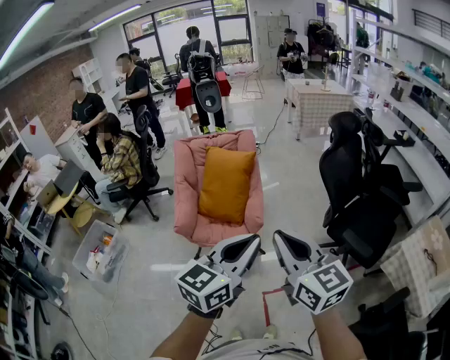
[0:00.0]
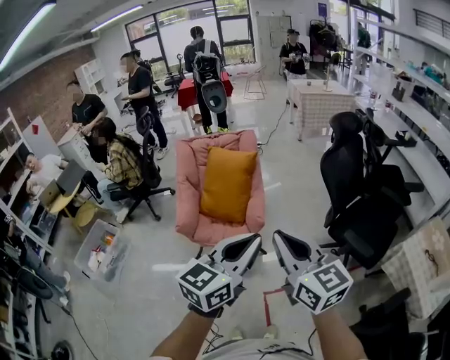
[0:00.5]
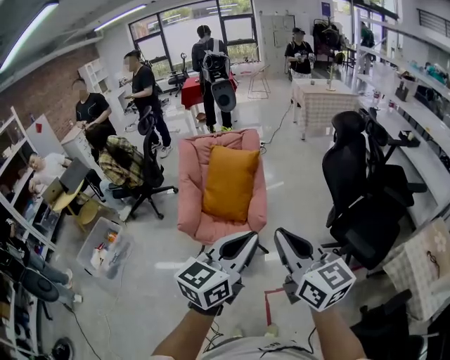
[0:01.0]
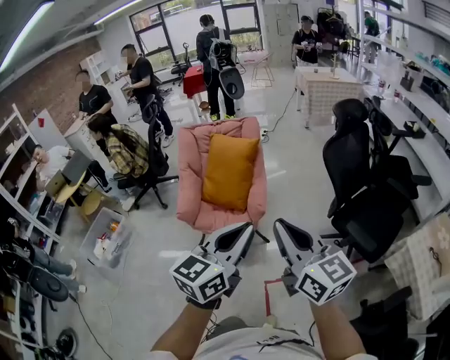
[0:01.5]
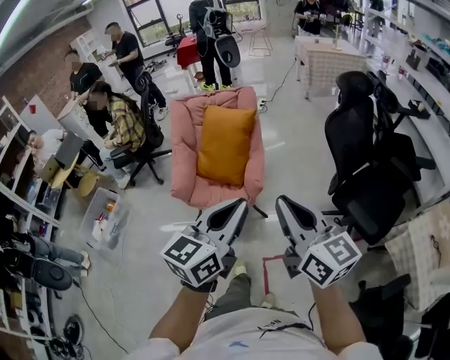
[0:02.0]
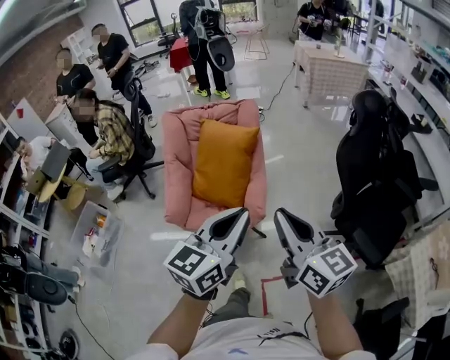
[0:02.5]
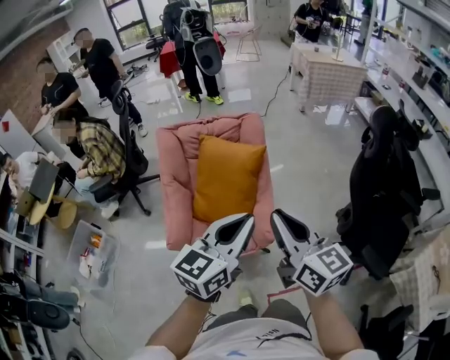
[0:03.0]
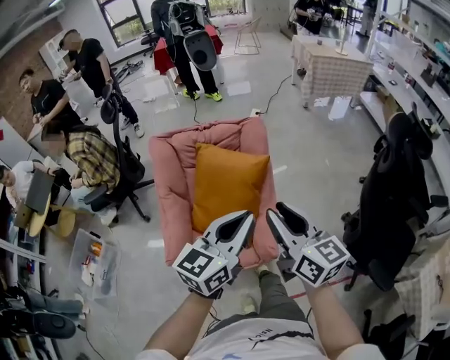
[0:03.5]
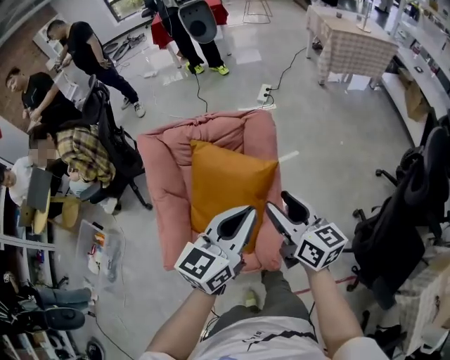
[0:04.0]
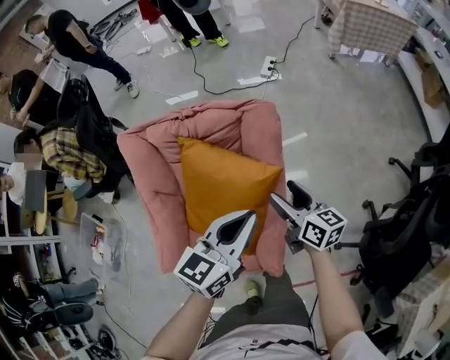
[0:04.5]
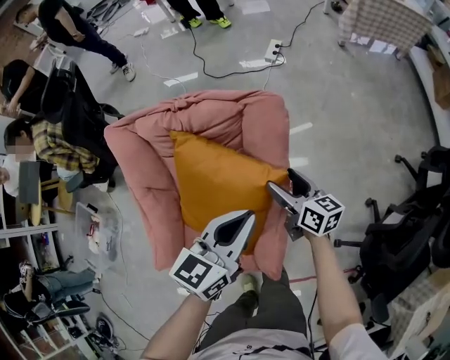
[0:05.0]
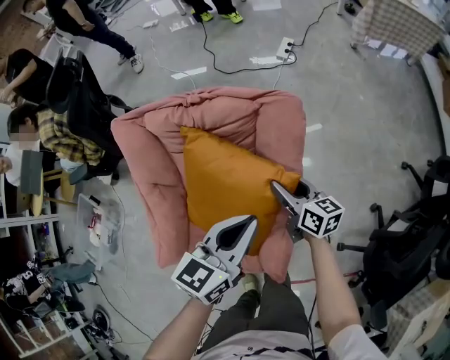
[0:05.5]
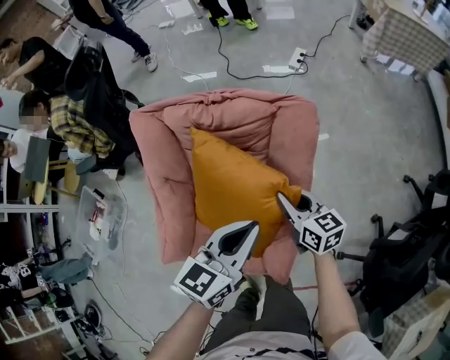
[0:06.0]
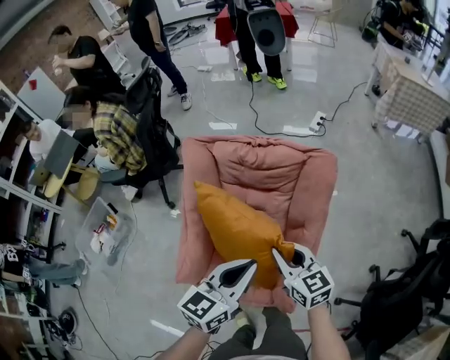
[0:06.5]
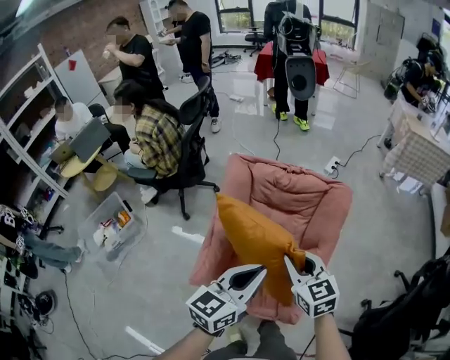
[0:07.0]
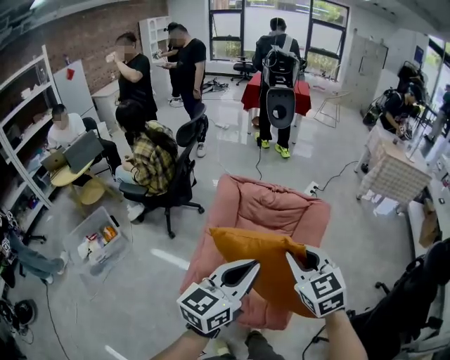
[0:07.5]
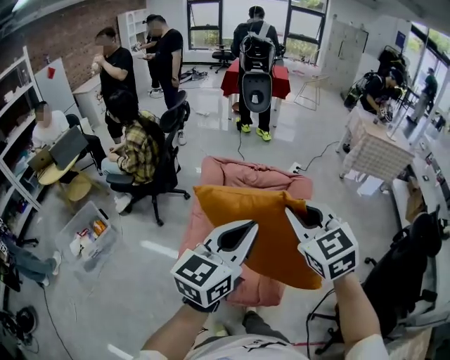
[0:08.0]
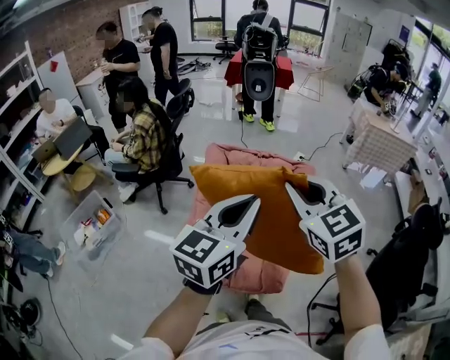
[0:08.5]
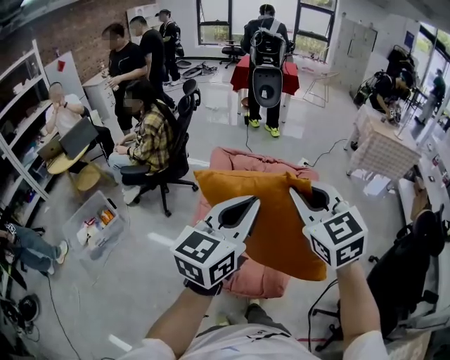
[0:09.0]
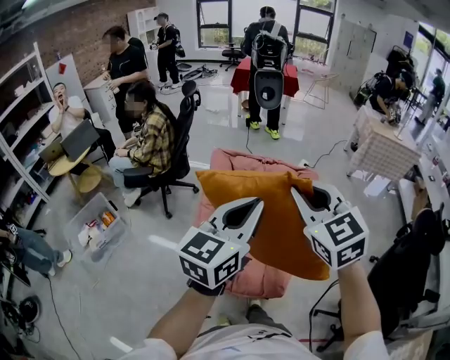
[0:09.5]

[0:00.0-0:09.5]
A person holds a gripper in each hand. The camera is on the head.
0:00.0 to 0:02.0: The right gripper moves to the right and forward, roughly 10 cm; the left gripper goes about 5 cm forward.
0:02.0 to 0:04.0: The two grippers travel together, forward, approximately 60 cm. The right gripper opens.
0:04.0 to 0:05.5: The left gripper goes about 20 cm downward and forward, while the right gripper travels downward and forward by roughly 30 cm.
0:05.5 to 0:07.5: The right gripper goes approximately 50 cm upward, backward and to the left, rotates around the line of its fingers by approximately 60 degrees, counterclockwise from behind, and closes its fingers, while the left gripper heads upward, to the left and backward, covering some 40 cm, and turns by about 20 degrees.
0:07.5 to 0:09.5: Both grippers travel together upward, about 10 cm.

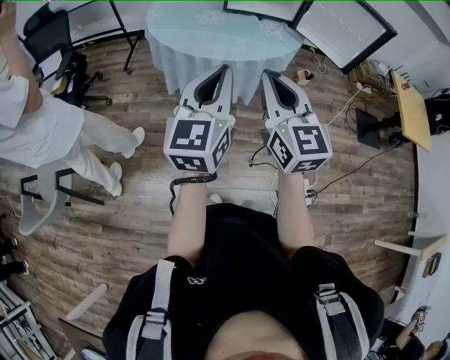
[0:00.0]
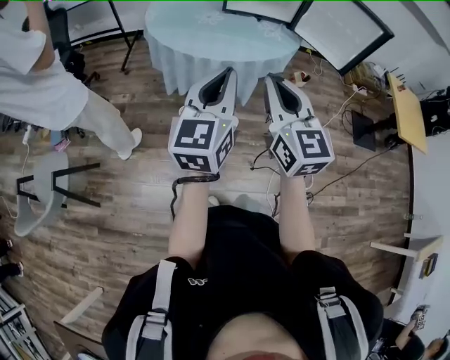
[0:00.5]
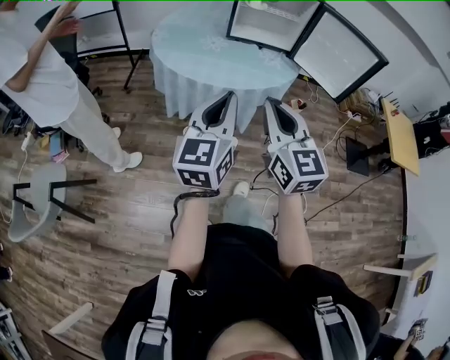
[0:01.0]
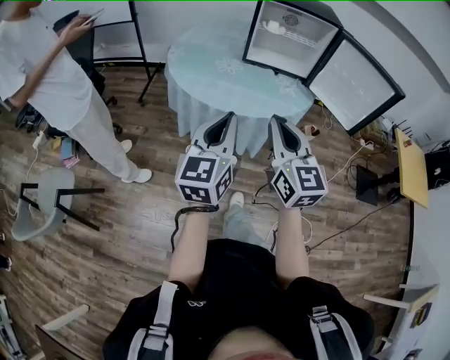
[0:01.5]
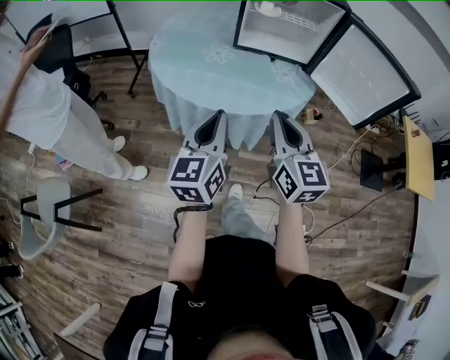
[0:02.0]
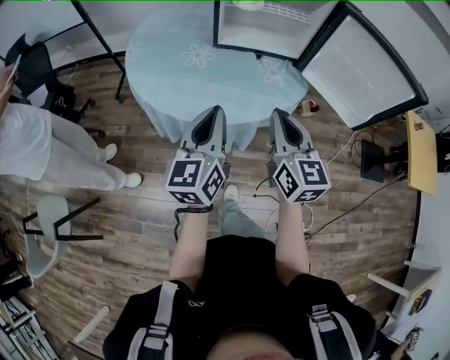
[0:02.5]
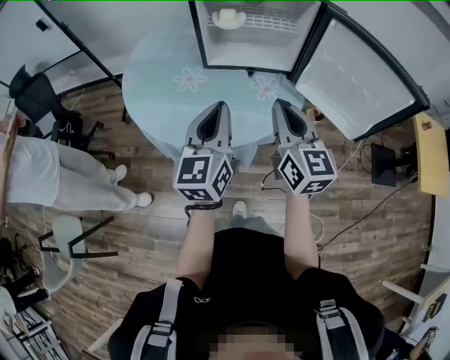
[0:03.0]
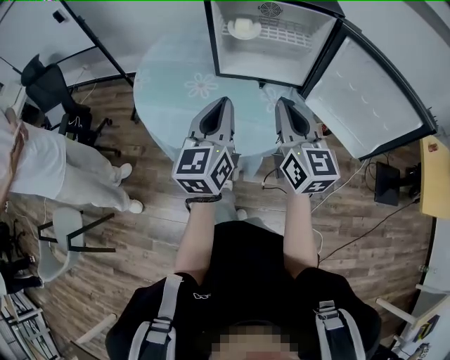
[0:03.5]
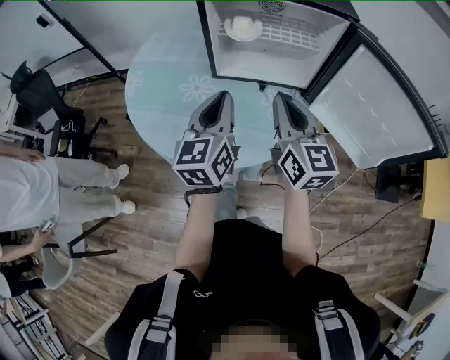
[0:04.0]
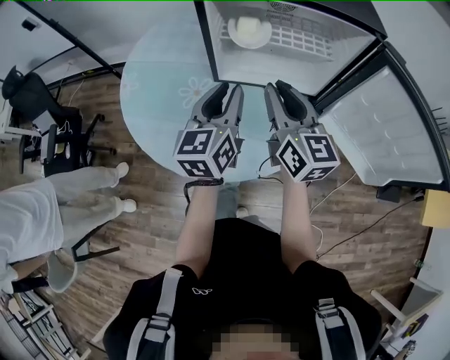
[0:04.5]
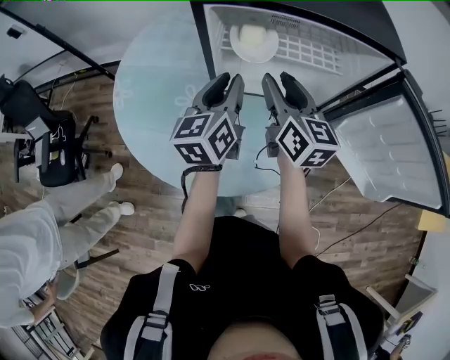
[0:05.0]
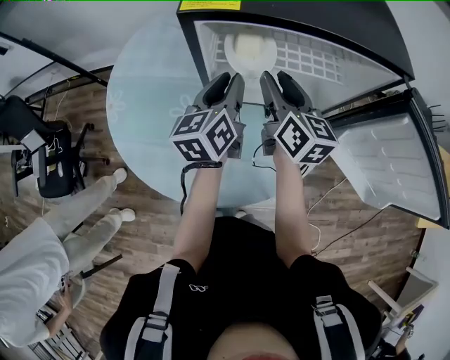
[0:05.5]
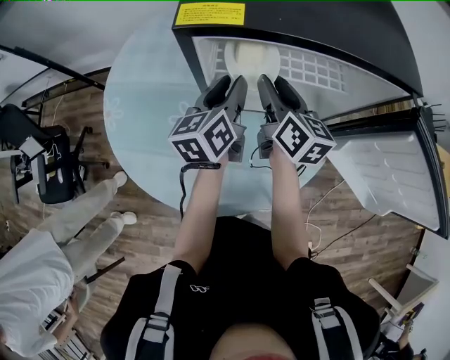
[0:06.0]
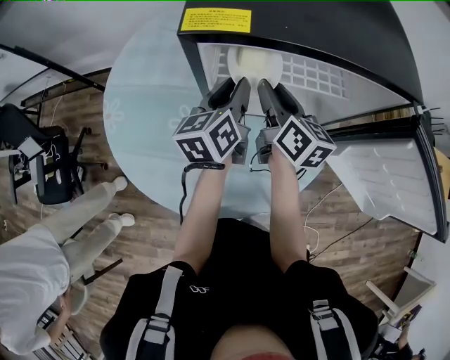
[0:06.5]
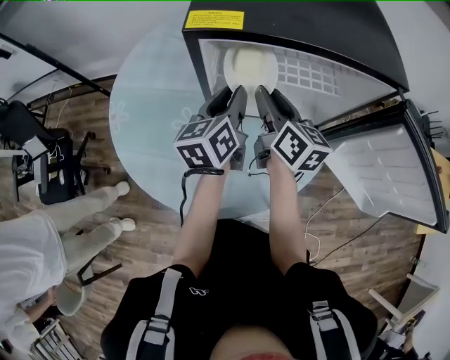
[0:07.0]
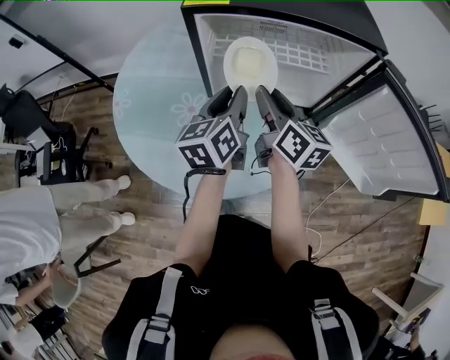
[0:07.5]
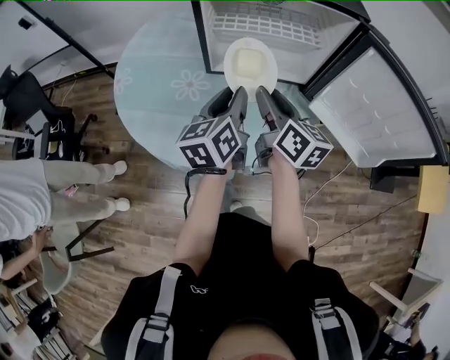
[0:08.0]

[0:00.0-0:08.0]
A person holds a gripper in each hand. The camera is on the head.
0:00.0 to 0:02.0: Both grippers travel together forward, some 20 cm.
0:02.0 to 0:04.0: The grippers both shift forward by approximately 30 cm.
0:04.0 to 0:06.0: Both grippers move forward, approximately 25 cm. The left gripper turns by some 20 degrees, and opens its fingers. Meanwhile the right gripper swivels some 20 degrees, and opens.
0:06.0 to 0:08.0: The grippers both shift backward by roughly 20 cm.

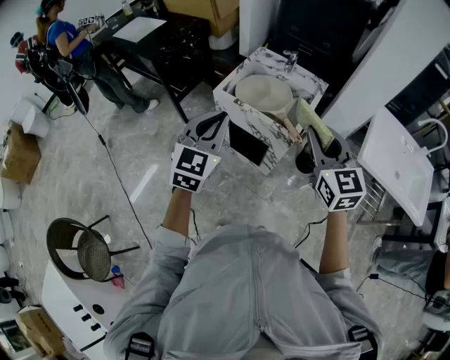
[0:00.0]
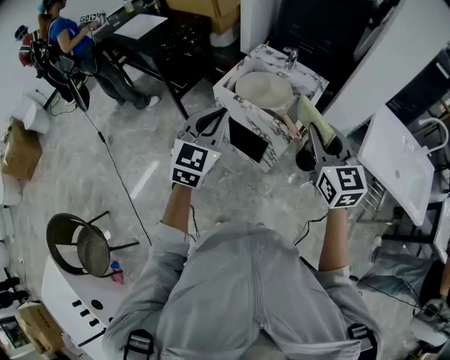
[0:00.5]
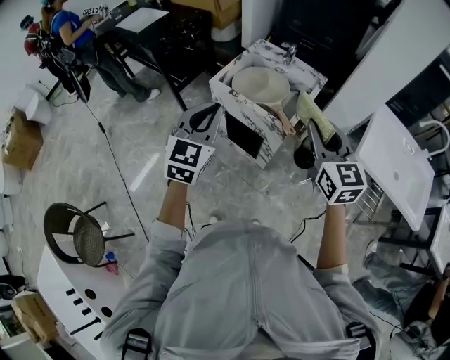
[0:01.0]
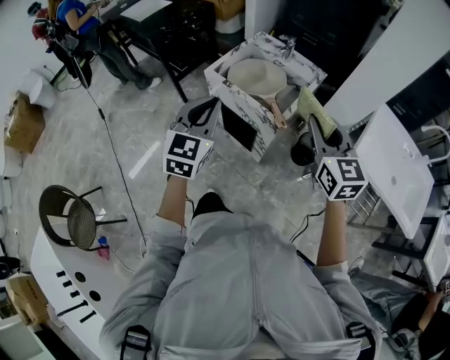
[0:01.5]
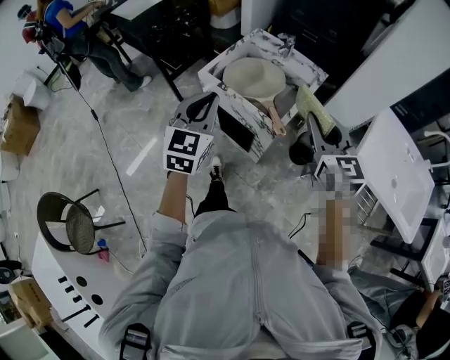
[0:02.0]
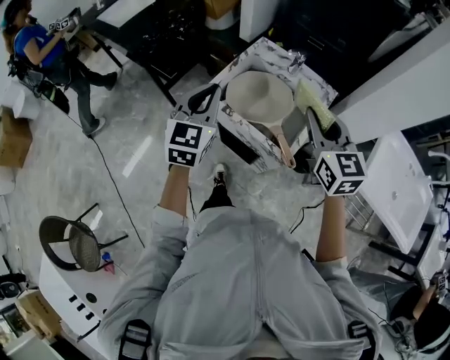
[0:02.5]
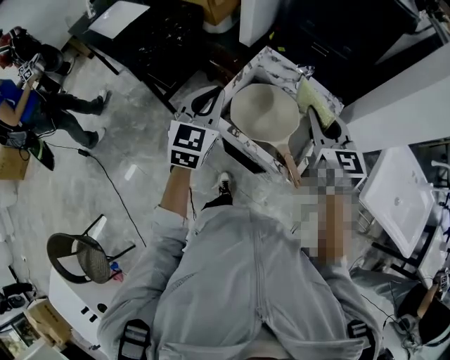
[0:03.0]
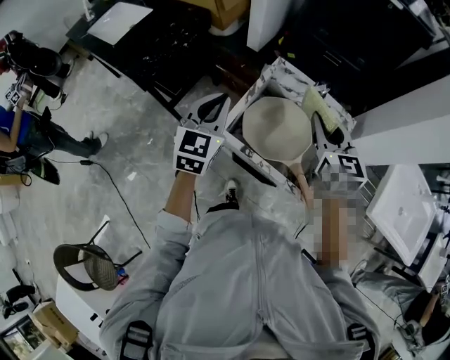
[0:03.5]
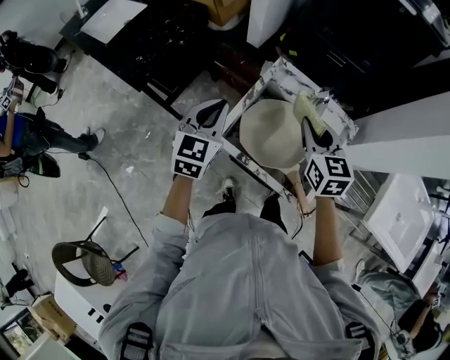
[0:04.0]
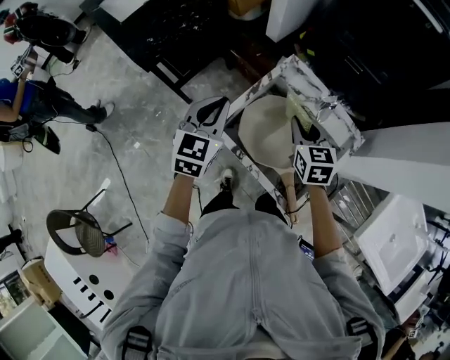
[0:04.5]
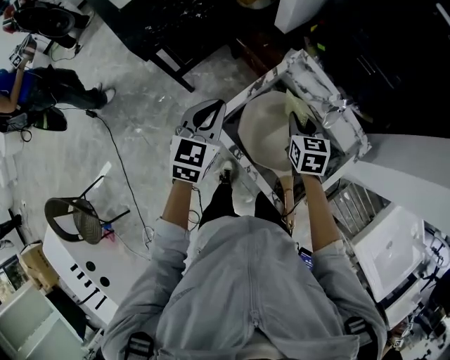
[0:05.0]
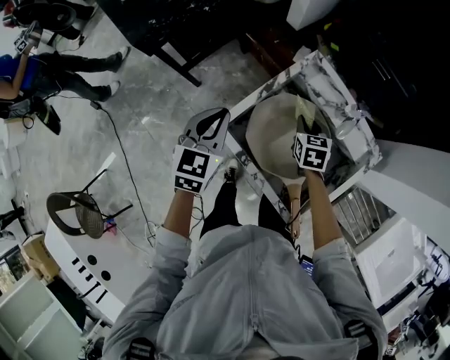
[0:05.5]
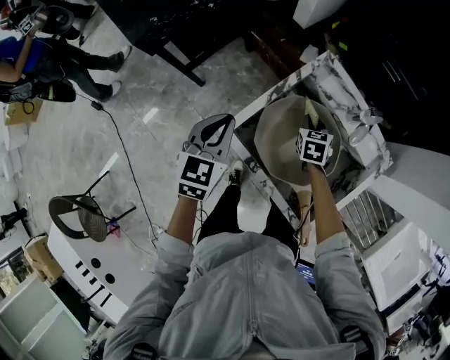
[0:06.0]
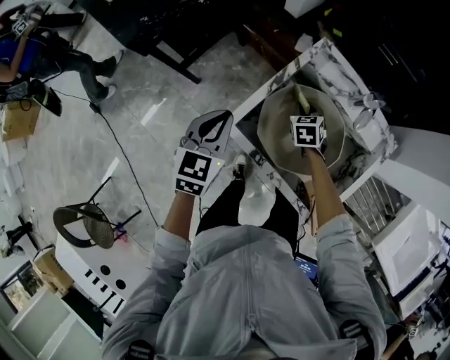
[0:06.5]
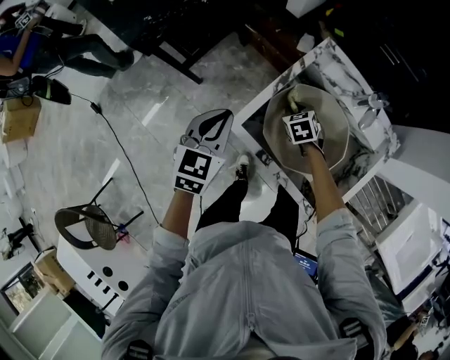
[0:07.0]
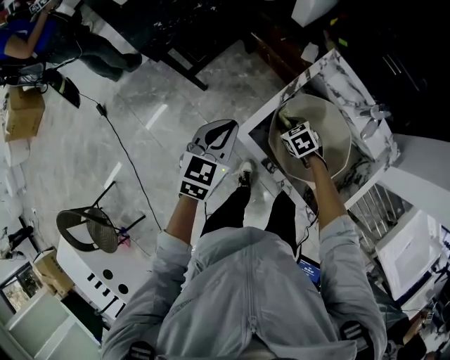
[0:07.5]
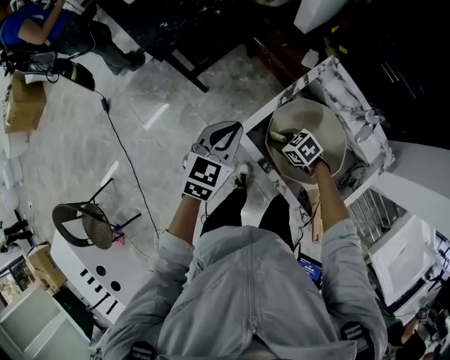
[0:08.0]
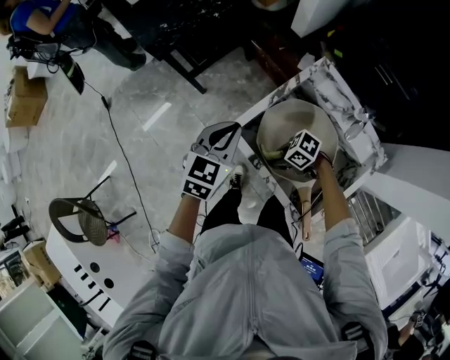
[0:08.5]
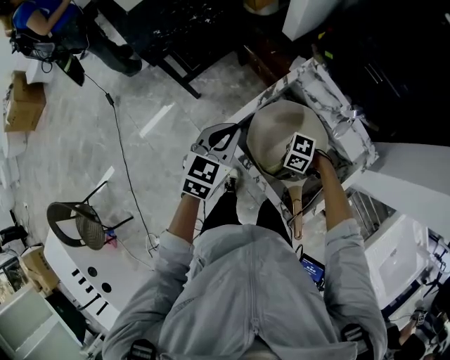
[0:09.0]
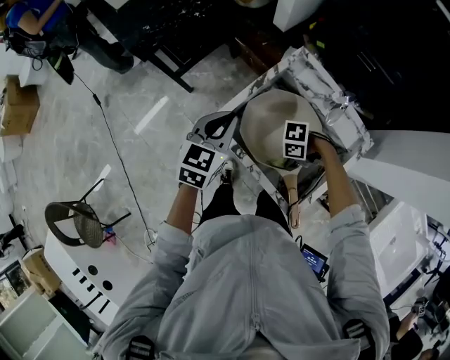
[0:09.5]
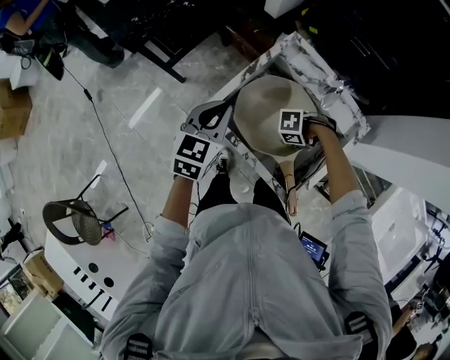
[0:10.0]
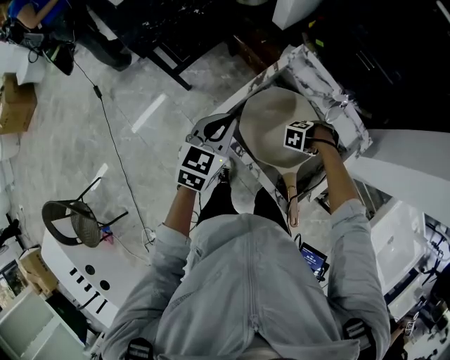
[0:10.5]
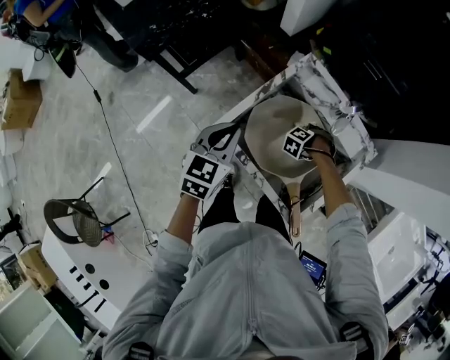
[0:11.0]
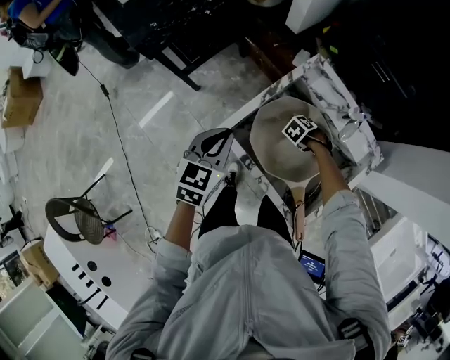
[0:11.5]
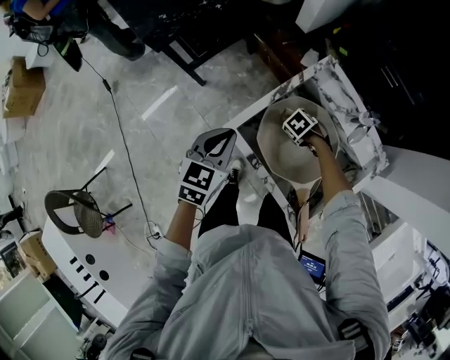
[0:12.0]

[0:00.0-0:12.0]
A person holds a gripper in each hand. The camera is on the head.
0:00.0 to 0:02.0: Both grippers move to the right and forward, roughly 10 cm.
0:02.0 to 0:04.0: The pair of grippers is taken forward, some 40 cm.
0:04.0 to 0:06.0: The right gripper heads downward, covering about 30 cm, and turns by some 30 degrees. Meanwhile the left gripper goes approximately 15 cm downward.
0:06.0 to 0:08.0: The right gripper moves approximately 20 cm, and swivels about 60 degrees.
0:08.0 to 0:10.0: The left gripper shifts by approximately 10 cm. Meanwhile the right gripper moves approximately 25 cm, and changes its angle by about 60 degrees.
0:10.0 to 0:12.0: The left gripper moves some 10 cm. The right gripper moves approximately 20 cm, and swivels approximately 40 degrees.
